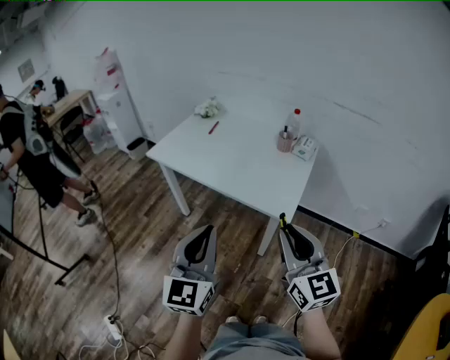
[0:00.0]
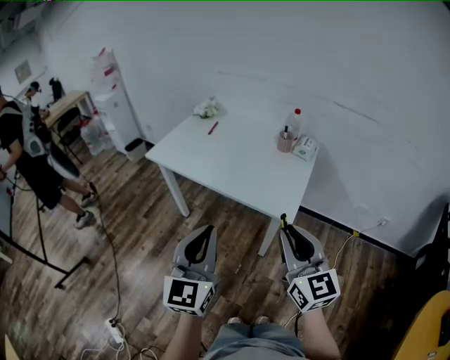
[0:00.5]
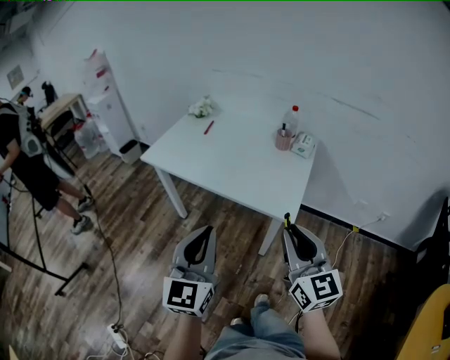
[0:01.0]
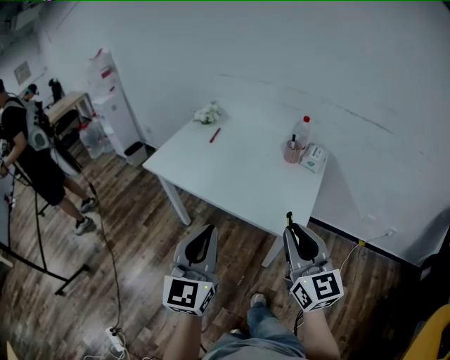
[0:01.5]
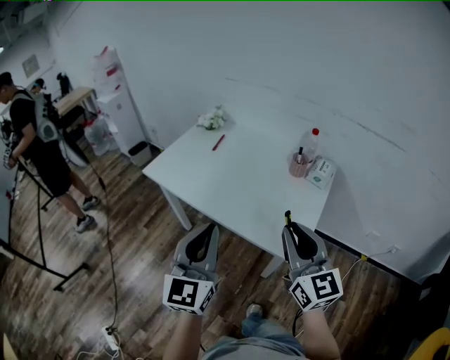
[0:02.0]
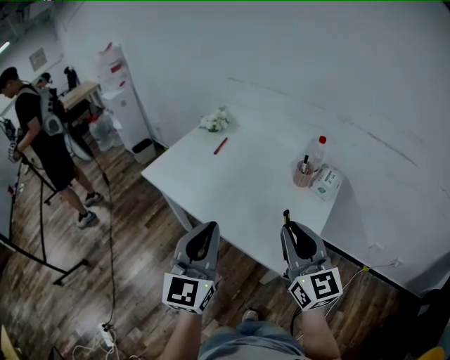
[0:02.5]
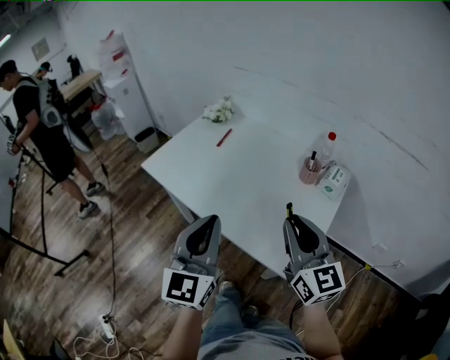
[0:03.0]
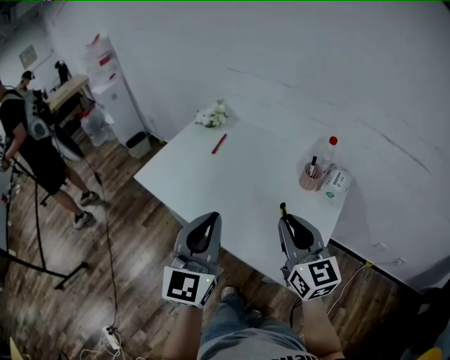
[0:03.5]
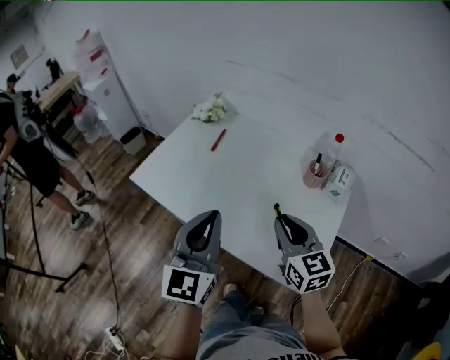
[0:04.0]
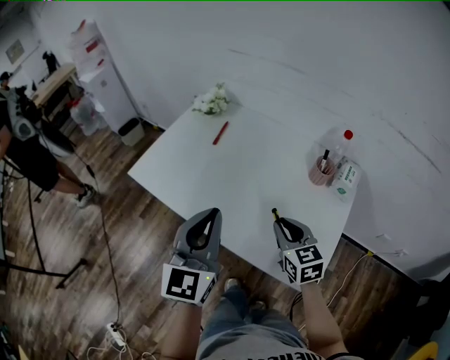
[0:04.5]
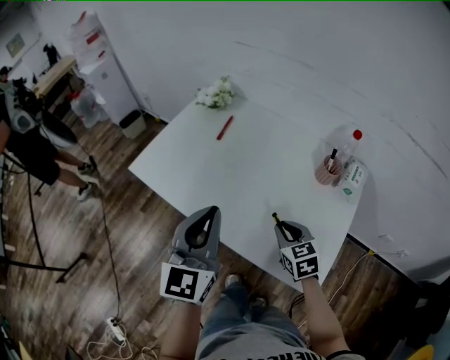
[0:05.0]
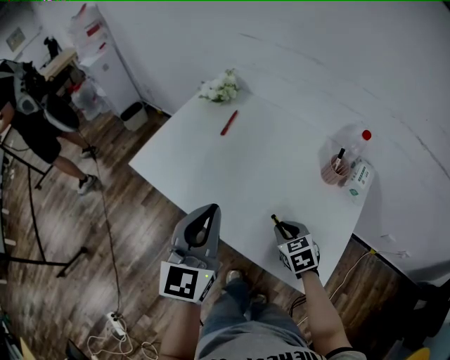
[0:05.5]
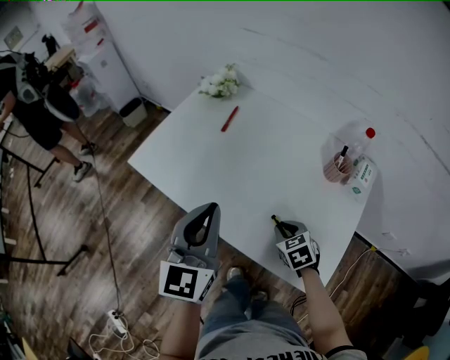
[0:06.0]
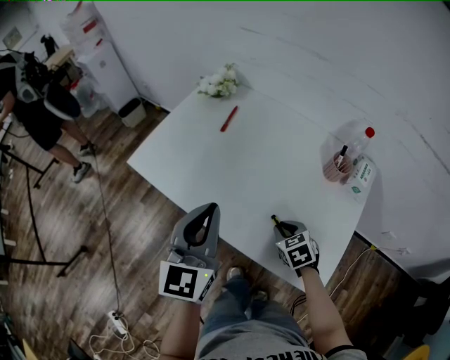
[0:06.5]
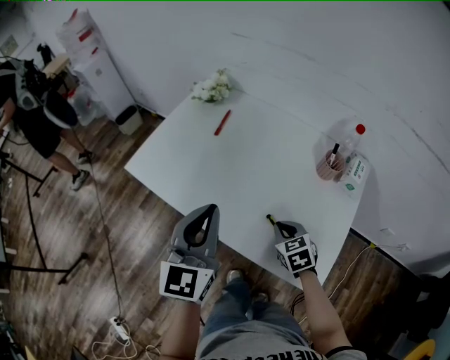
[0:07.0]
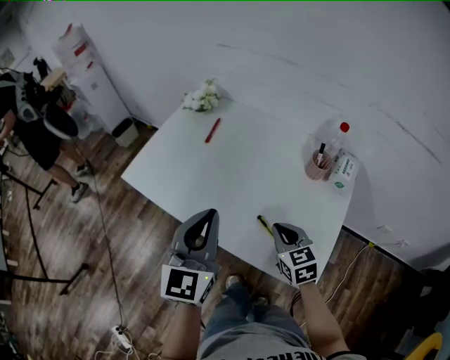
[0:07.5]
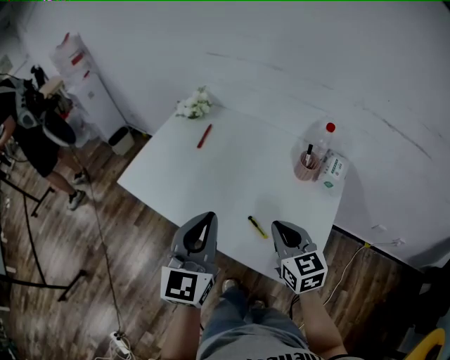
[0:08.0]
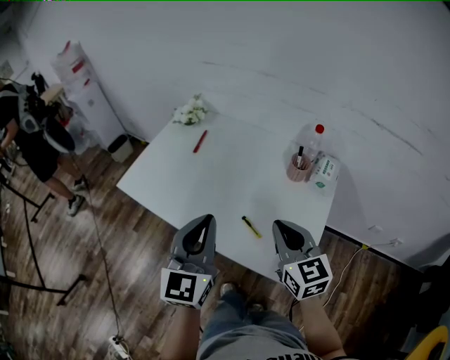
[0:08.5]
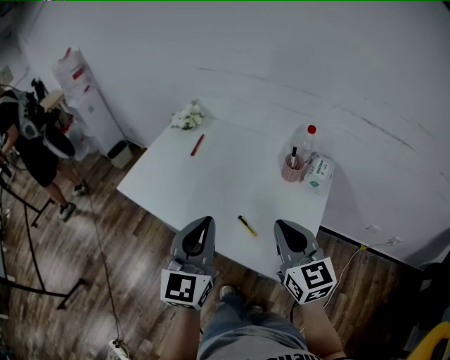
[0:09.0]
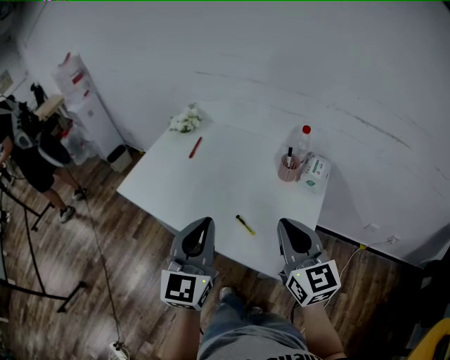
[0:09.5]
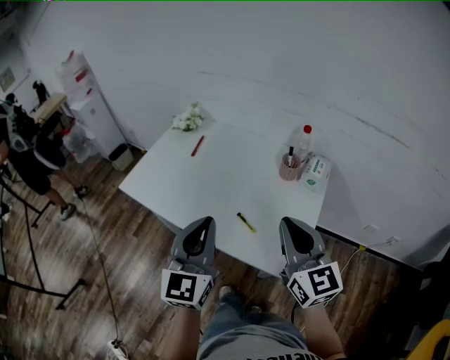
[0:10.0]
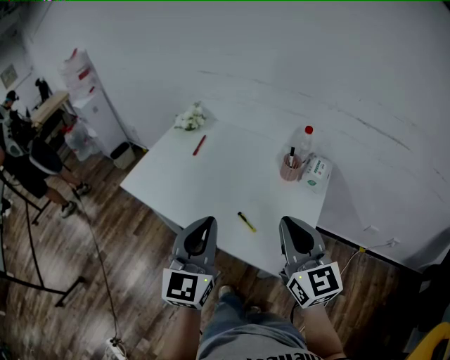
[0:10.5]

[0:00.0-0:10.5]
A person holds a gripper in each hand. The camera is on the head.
0:00.0 to 0:02.0: The grippers both shift forward by some 20 cm.
0:02.0 to 0:04.0: The right gripper is displaced forward and downward by approximately 20 cm. Meanwhile the left gripper moves forward, roughly 20 cm.
0:04.0 to 0:06.5: The right gripper shifts about 20 cm downward, and tips its fingers downward by about 40 degrees; the left gripper moves forward and downward, some 10 cm.
0:06.5 to 0:08.5: The right gripper shifts about 25 cm upward, and points its fingers some 40 degrees further upward. The left gripper moves to the right and backward, about 10 cm.
0:08.5 to 0:10.5: The right gripper shifts approximately 10 cm upward and backward; the left gripper shifts roughly 5 cm backward.

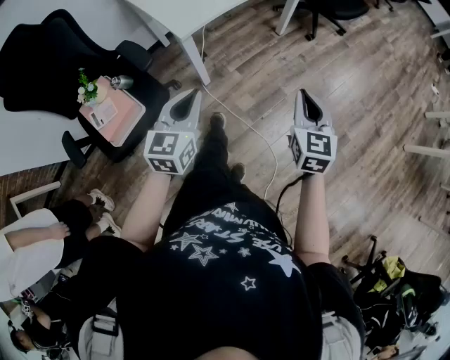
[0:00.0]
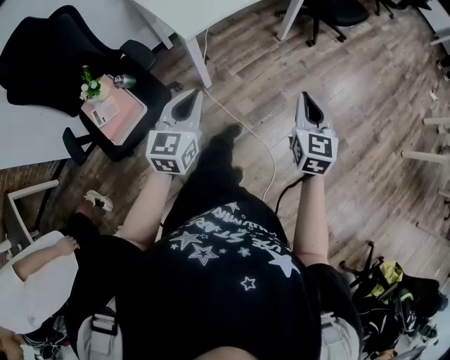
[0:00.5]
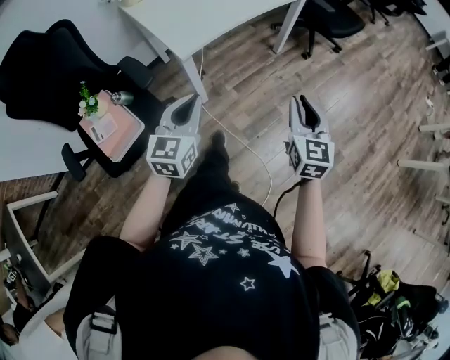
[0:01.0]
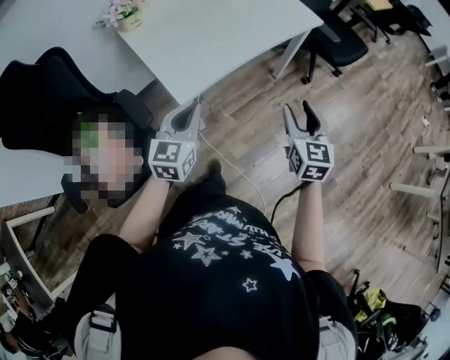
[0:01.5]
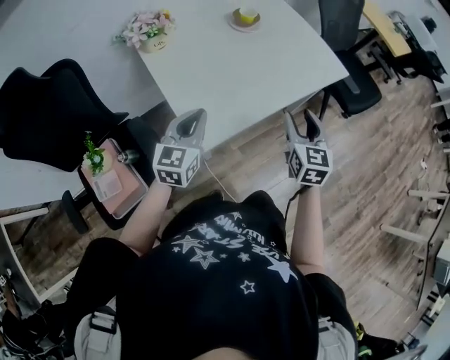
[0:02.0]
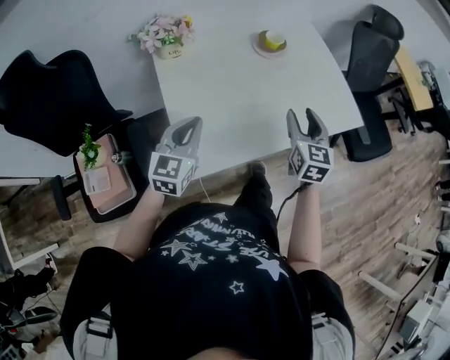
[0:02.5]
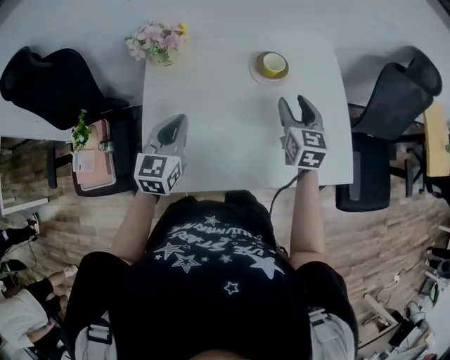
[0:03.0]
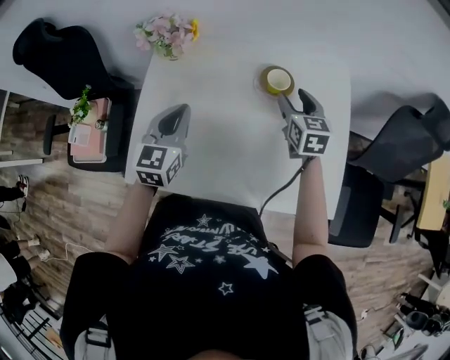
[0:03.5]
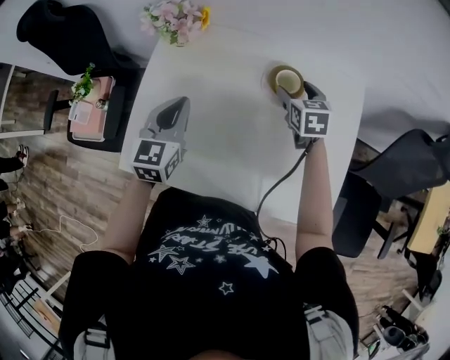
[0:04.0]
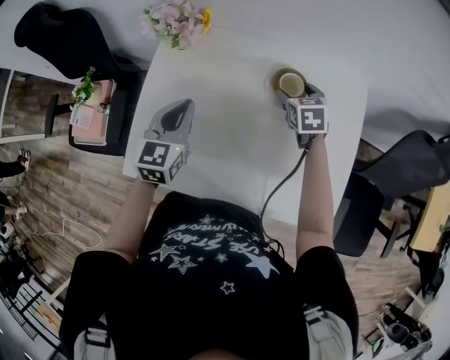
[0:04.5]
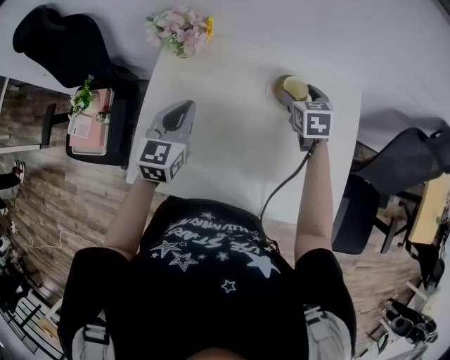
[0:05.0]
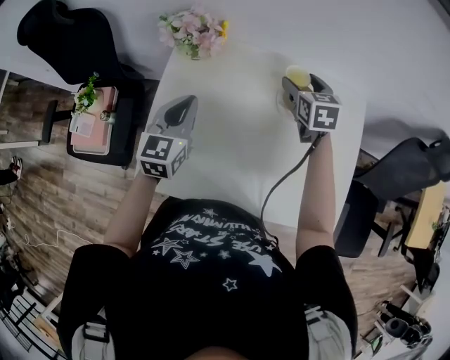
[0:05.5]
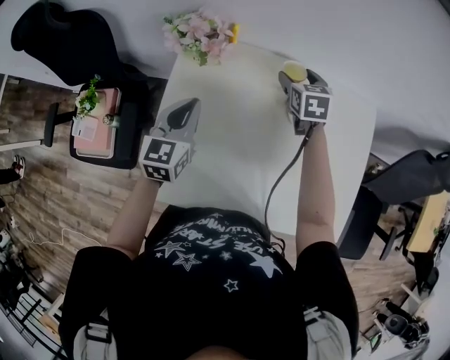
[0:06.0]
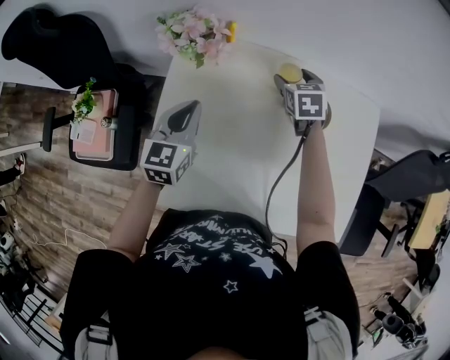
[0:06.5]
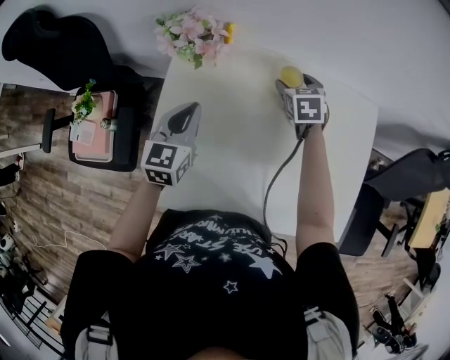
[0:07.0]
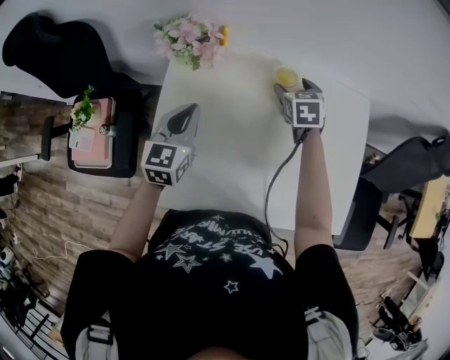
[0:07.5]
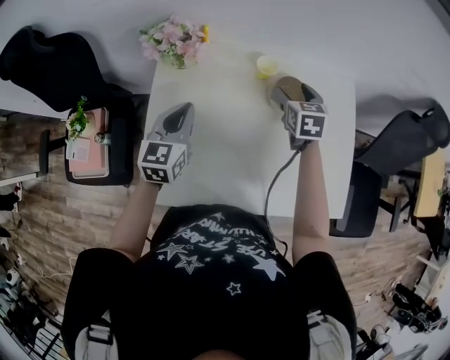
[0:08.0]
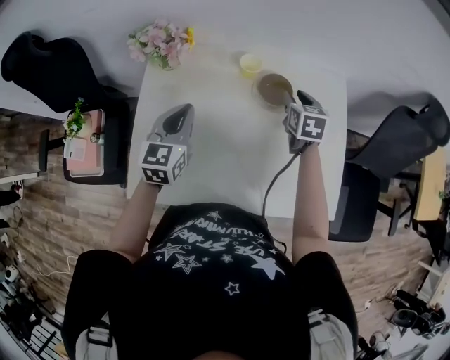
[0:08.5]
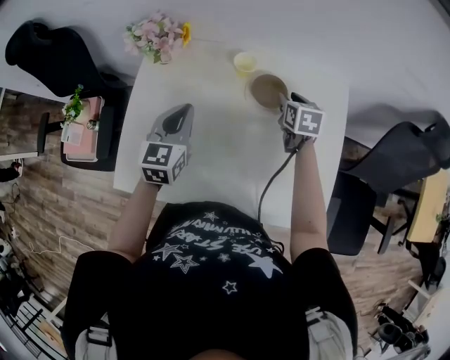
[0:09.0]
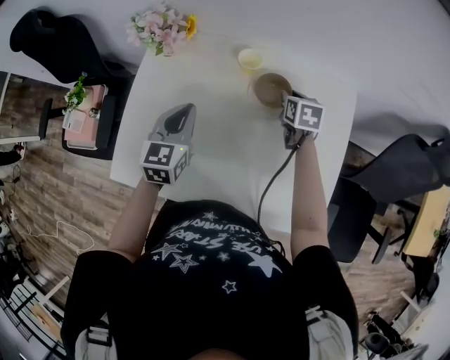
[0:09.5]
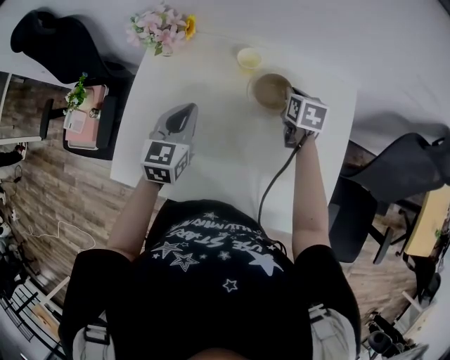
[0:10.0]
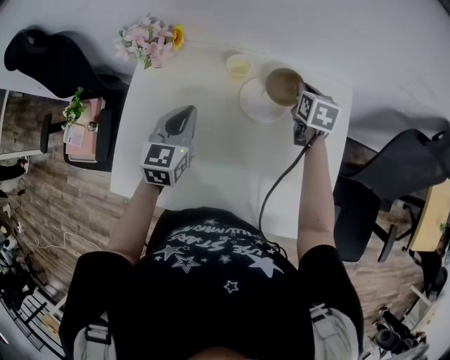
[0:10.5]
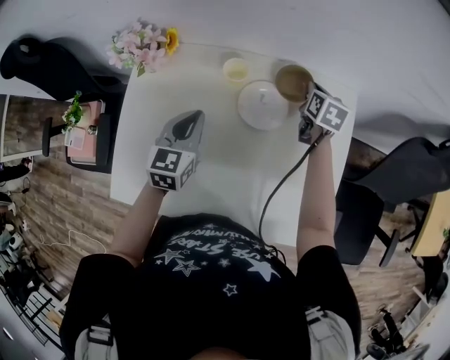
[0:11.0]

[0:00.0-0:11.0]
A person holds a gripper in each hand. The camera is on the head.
0:00.0 to 0:02.0: Both grippers travel together forward, approximately 35 cm. The right gripper opens up.
0:02.0 to 0:03.5: The left gripper ends up approximately 25 cm from where it was, and swivels about 40 degrees. Meanwhile the right gripper moves approximately 50 cm, and turns by approximately 50 degrees.
0:03.5 to 0:05.5: The right gripper goes roughly 10 cm forward and to the left. Meanwhile the left gripper heads to the left and forward, covering approximately 10 cm.
0:05.5 to 0:07.5: The right gripper goes some 5 cm downward.
0:07.5 to 0:09.0: Both grippers travel together to the right, roughly 15 cm. The right gripper closes its fingers.
0:09.0 to 0:11.0: The left gripper is displaced to the right by roughly 5 cm. Meanwhile the right gripper travels forward and to the right by approximately 15 cm, and closes.

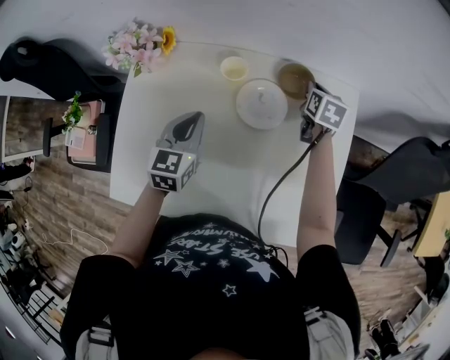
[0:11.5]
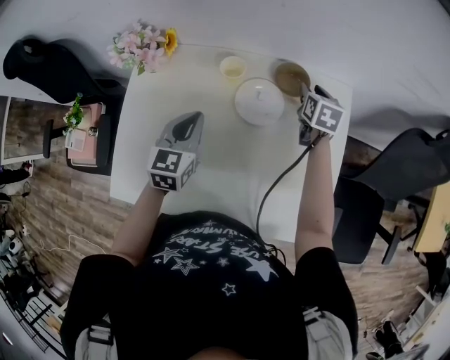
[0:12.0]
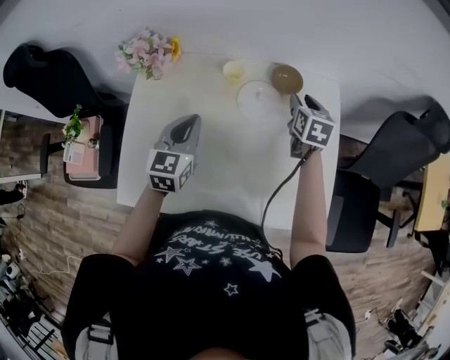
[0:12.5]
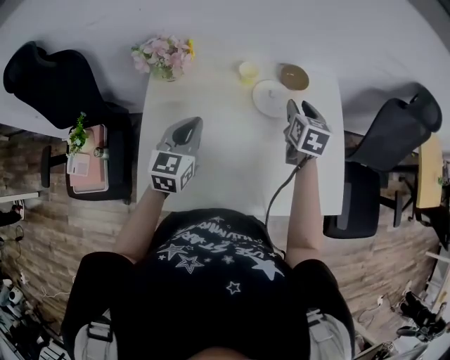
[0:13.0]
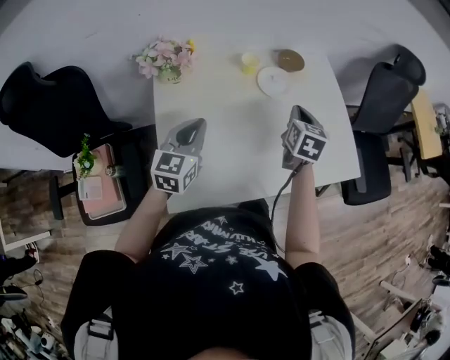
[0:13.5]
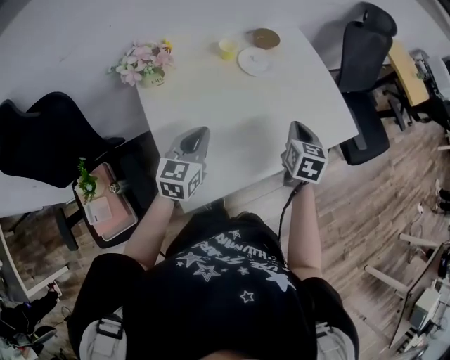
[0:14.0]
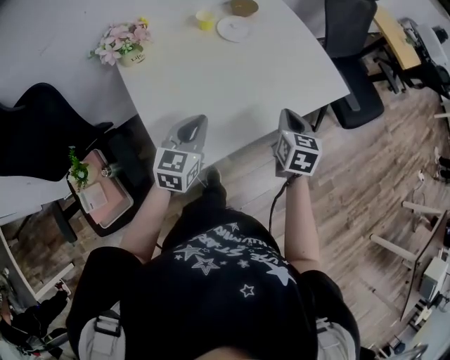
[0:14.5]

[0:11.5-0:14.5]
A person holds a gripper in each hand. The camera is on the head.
0:11.5 to 0:13.0: The left gripper goes about 15 cm to the left, backward and upward, while the right gripper shifts approximately 25 cm backward, upward and to the left, and opens.
0:13.0 to 0:14.5: The left gripper shifts by about 15 cm, and rotates approximately 30 degrees. Meanwhile the right gripper ends up roughly 35 cm from where it was, changes its angle by about 30 degrees, and closes its fingers.

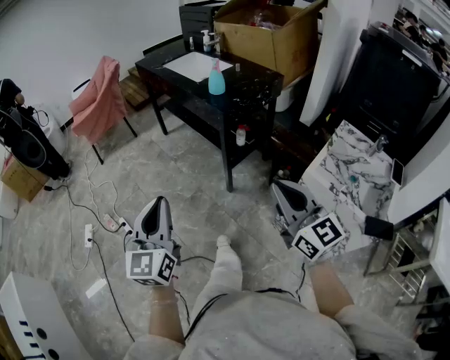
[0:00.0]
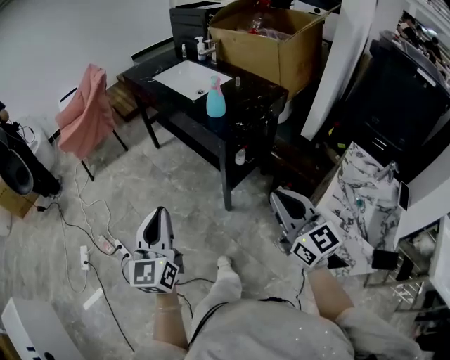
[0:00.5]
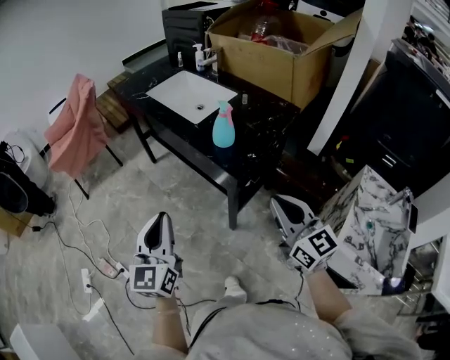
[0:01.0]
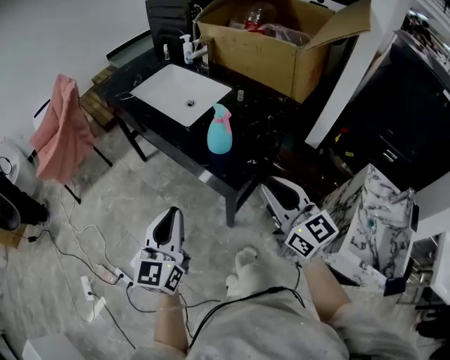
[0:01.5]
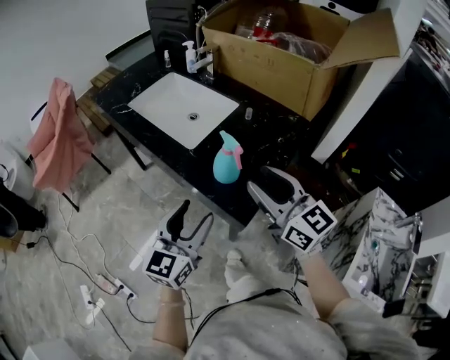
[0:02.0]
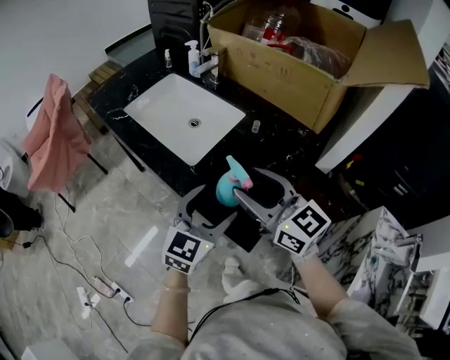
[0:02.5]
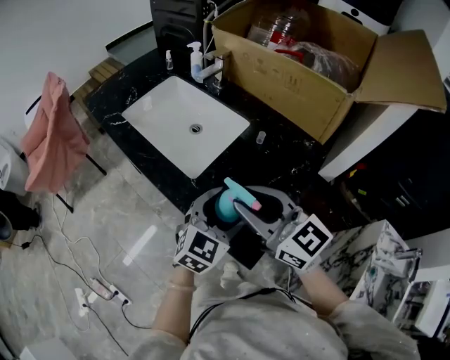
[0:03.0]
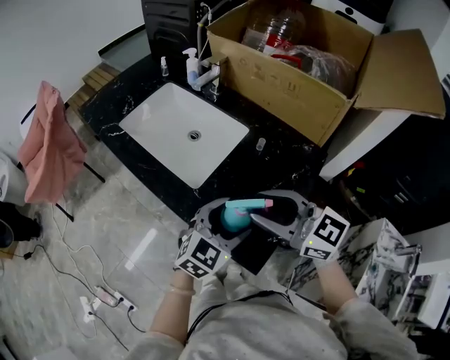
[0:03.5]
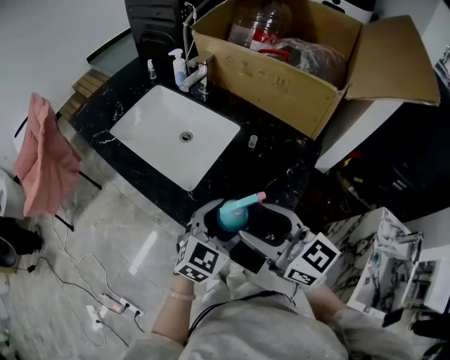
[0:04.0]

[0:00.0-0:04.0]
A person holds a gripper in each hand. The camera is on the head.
0:00.0 to 0:02.0: Both grippers are carried forward, about 50 cm. The left gripper turns by some 30 degrees, and opens up. The right gripper opens.
0:02.0 to 0:04.0: The left gripper goes roughly 15 cm forward and to the right, and rotates some 30 degrees, while the right gripper travels forward by about 5 cm.
